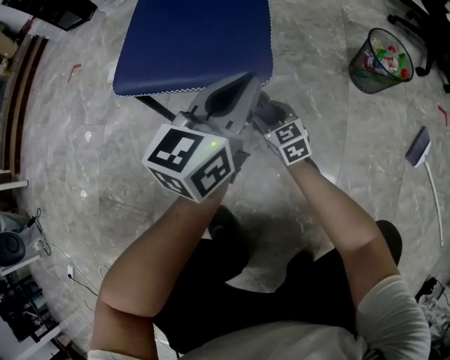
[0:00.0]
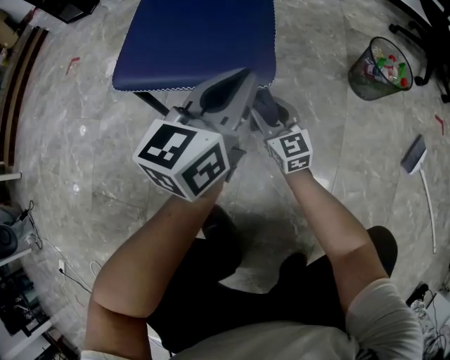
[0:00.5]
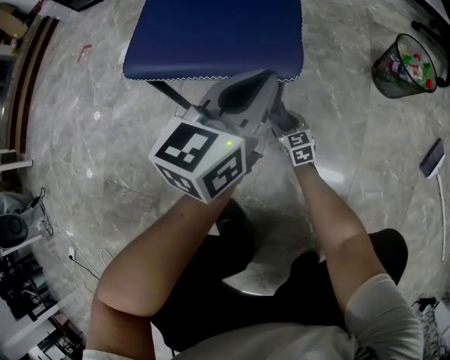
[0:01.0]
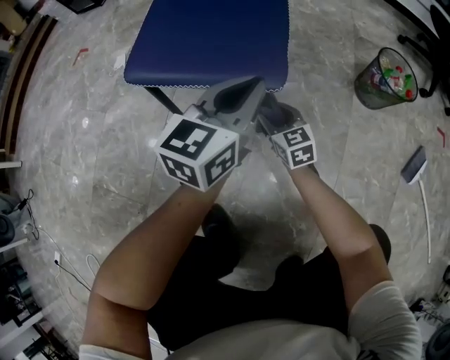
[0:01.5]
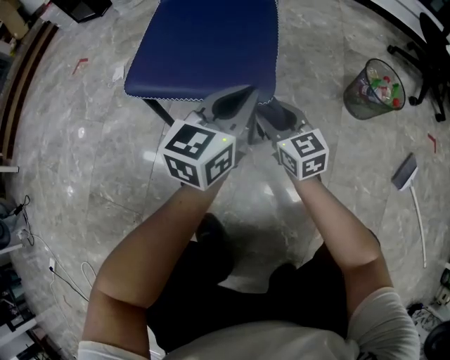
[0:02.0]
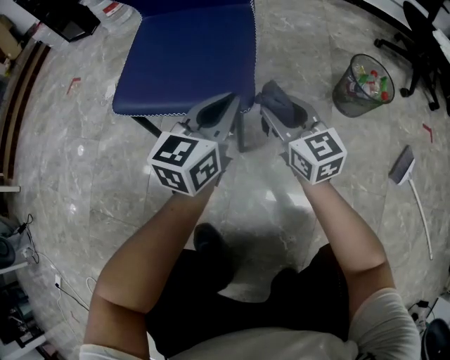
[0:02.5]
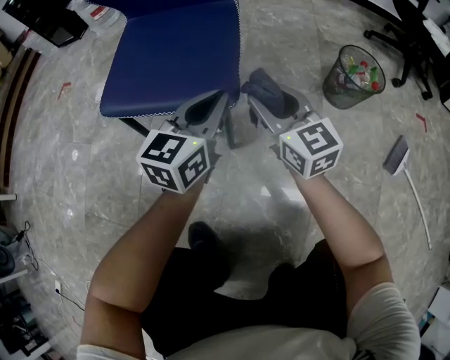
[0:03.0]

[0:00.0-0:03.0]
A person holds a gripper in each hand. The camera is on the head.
0:00.0 to 0:01.5: The right gripper moves up and down over approximately 20 cm, changing direction 2 times.
0:01.5 to 0:03.0: The right gripper goes approximately 20 cm upward.

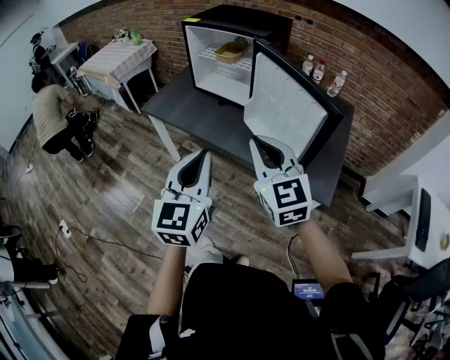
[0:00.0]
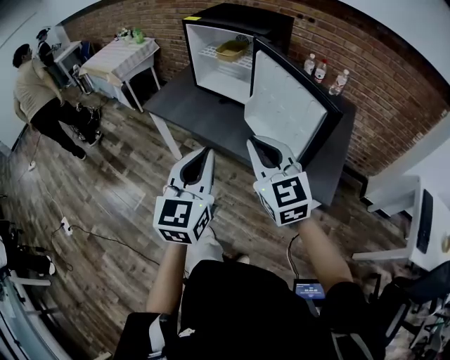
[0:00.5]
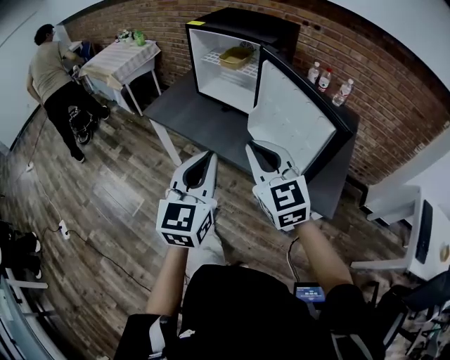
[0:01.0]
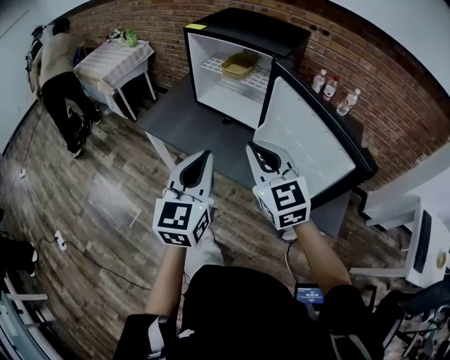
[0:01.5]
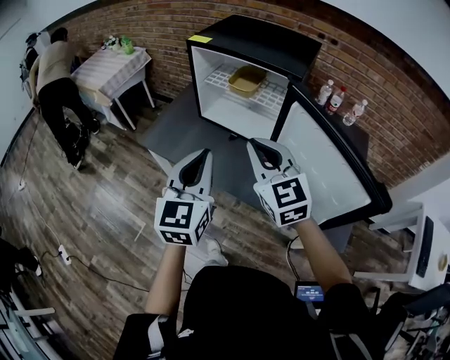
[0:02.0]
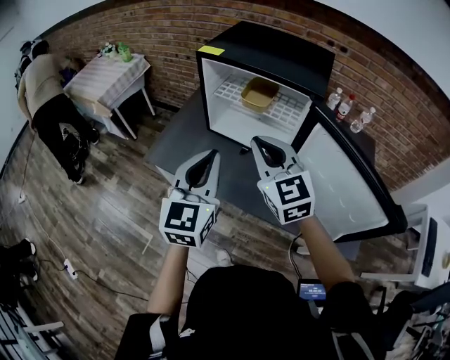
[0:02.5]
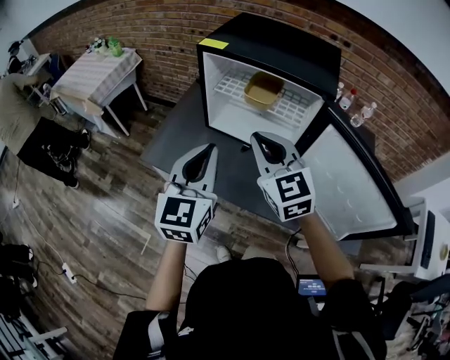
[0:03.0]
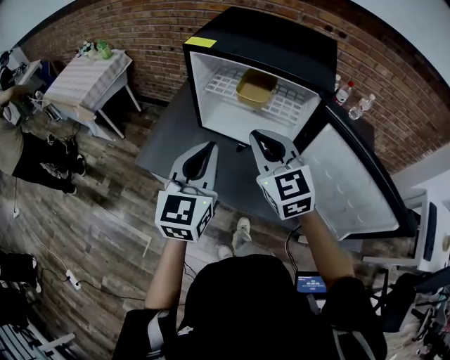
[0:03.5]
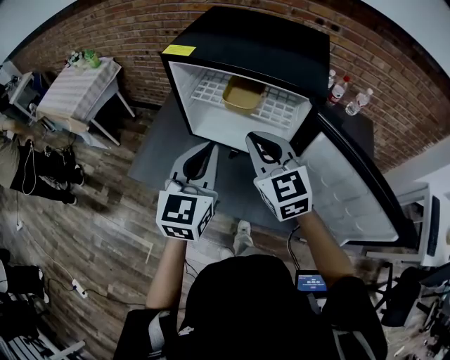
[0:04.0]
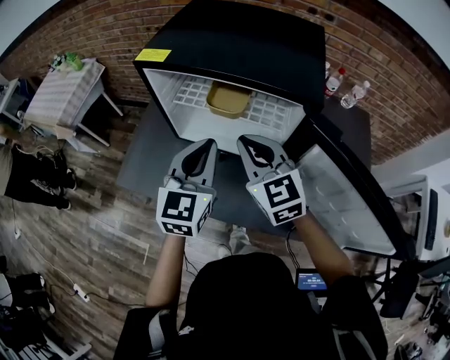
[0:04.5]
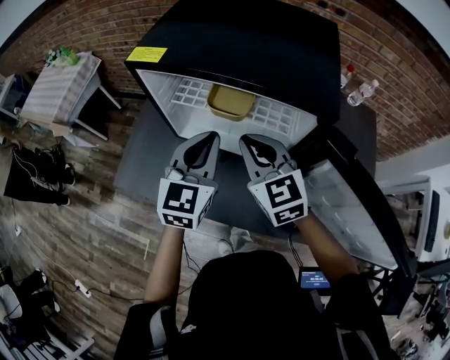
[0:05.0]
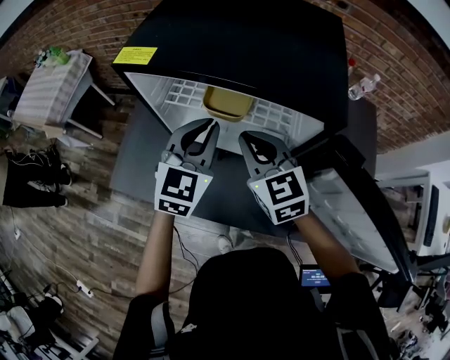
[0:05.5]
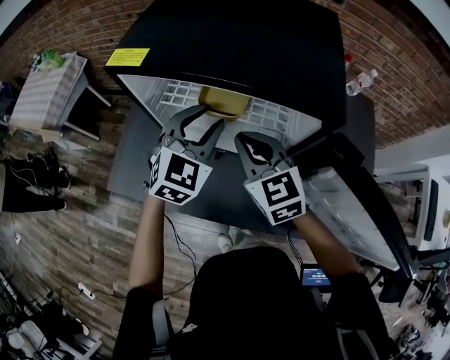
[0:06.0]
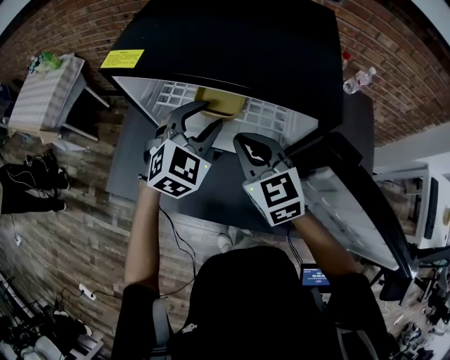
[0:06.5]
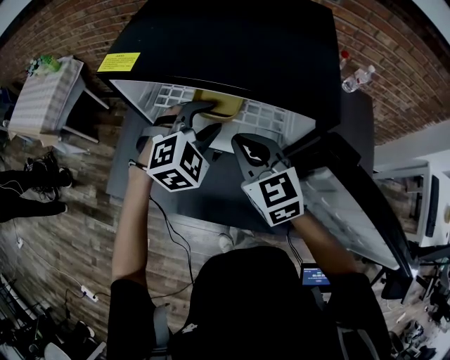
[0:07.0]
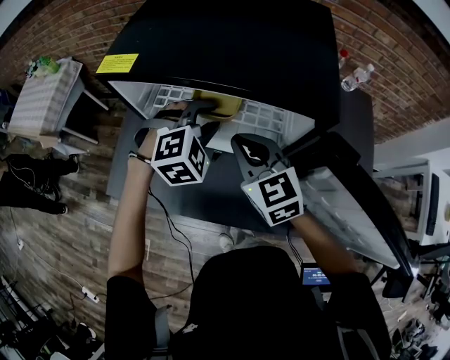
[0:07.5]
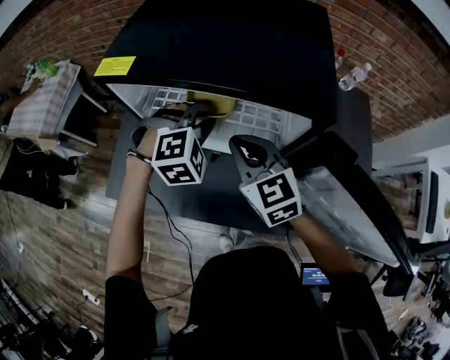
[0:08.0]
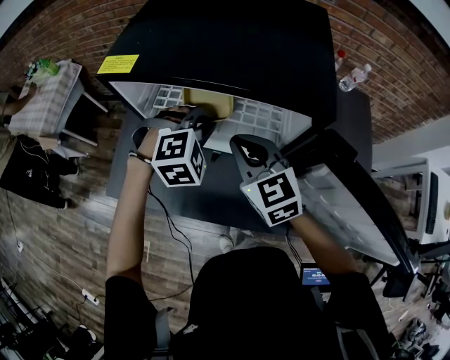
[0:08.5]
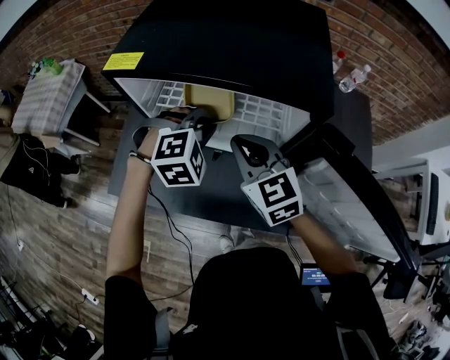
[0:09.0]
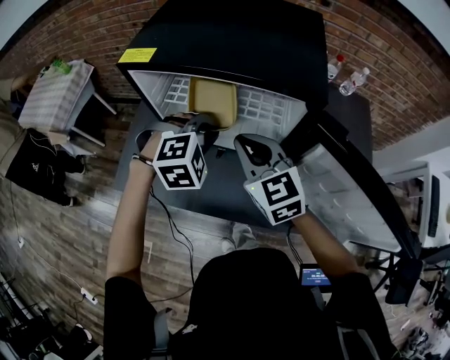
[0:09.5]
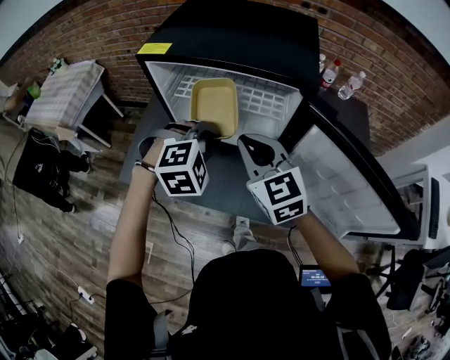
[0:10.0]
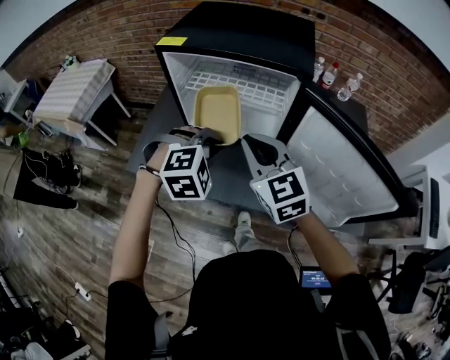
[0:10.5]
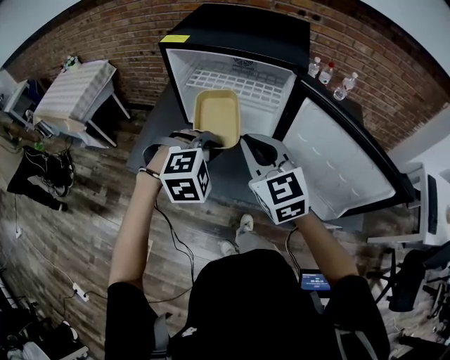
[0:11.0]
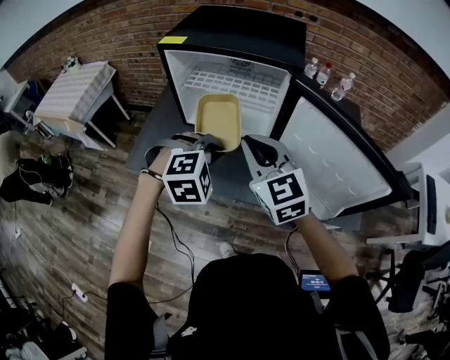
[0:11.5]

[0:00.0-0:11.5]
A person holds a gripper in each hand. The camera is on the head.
0:00.0 to 0:02.0: The two grippers go some 25 cm forward.
0:02.0 to 0:04.0: Both grippers move forward, some 20 cm.
0:04.0 to 0:06.0: The right gripper travels forward and downward by approximately 10 cm; the left gripper travels forward and downward by roughly 20 cm, rotates some 30 degrees, and opens.
0:06.0 to 0:07.5: The left gripper shifts by approximately 5 cm, and swivels approximately 40 degrees.
0:07.5 to 0:09.5: The right gripper moves about 5 cm. The left gripper moves backward, some 5 cm, and closes its fingers.
0:09.5 to 0:11.5: The grippers both shift backward by approximately 20 cm.

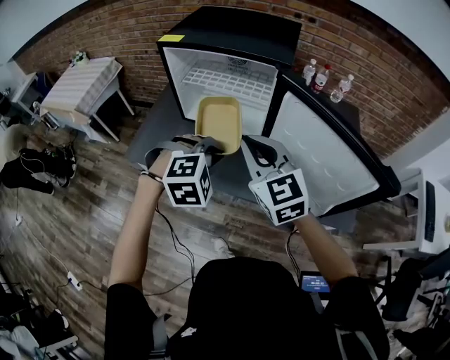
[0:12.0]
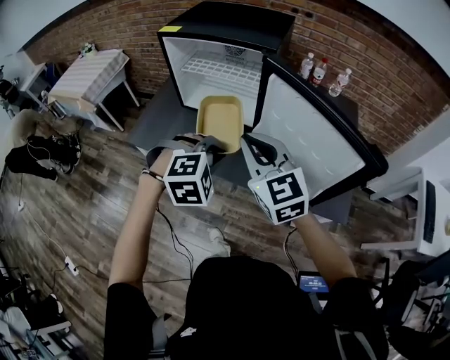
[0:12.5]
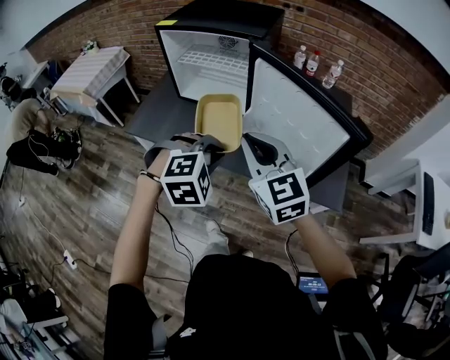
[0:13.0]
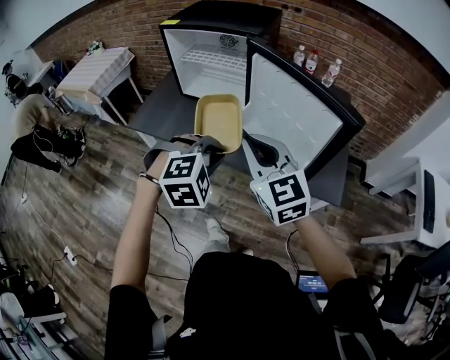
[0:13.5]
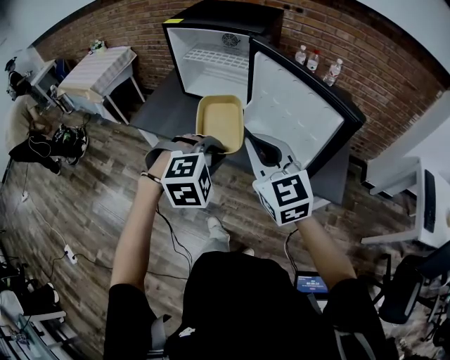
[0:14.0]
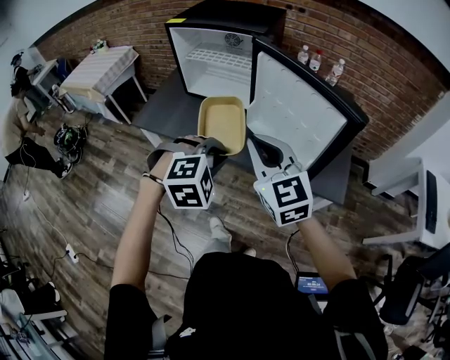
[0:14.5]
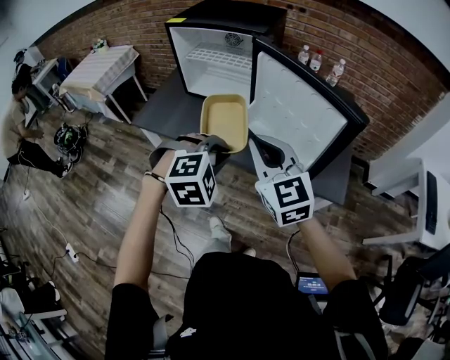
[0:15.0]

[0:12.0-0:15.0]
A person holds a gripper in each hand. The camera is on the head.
0:12.0 to 0:13.5: The two grippers go approximately 20 cm backward and to the right.
0:13.5 to 0:15.0: The grippers stay close to where they were, moving slightly.

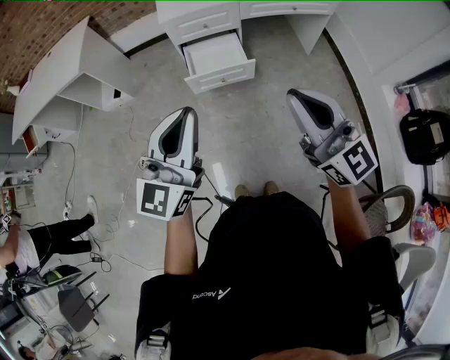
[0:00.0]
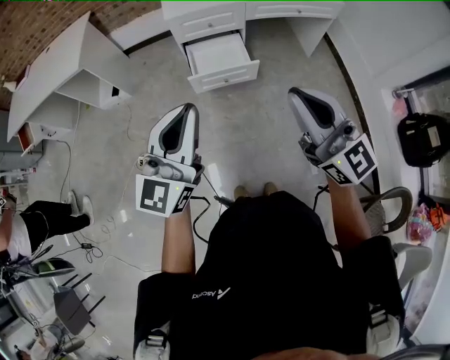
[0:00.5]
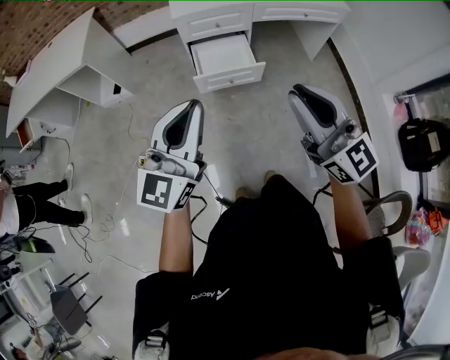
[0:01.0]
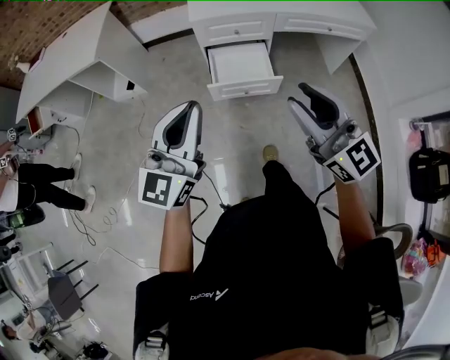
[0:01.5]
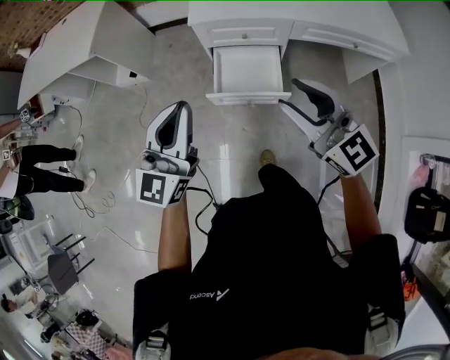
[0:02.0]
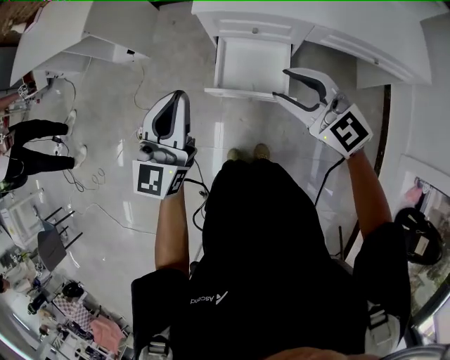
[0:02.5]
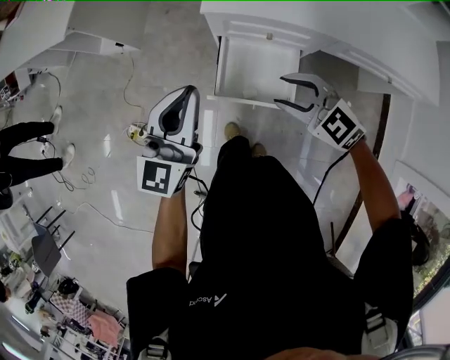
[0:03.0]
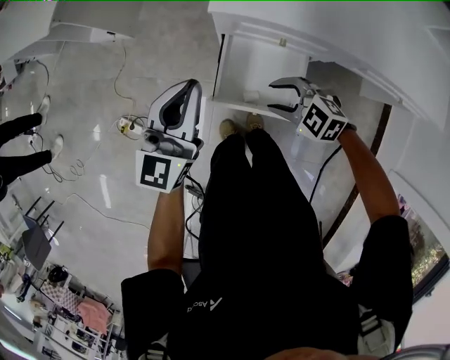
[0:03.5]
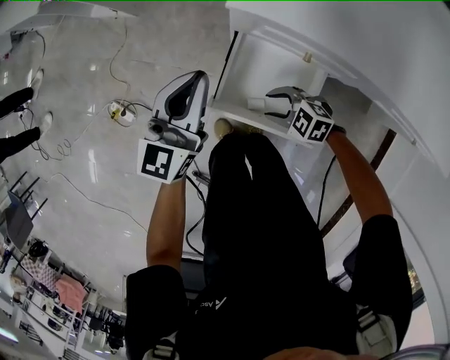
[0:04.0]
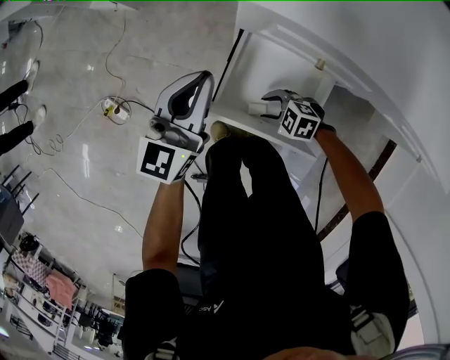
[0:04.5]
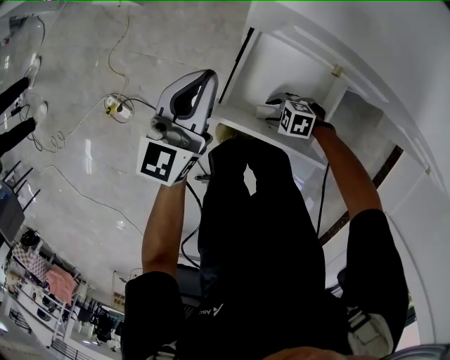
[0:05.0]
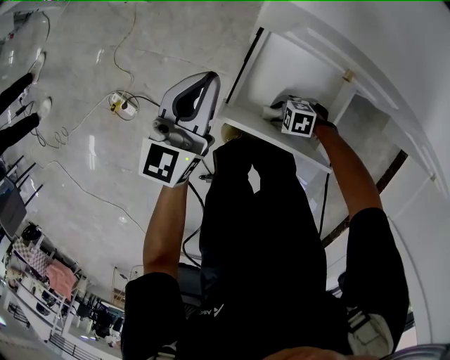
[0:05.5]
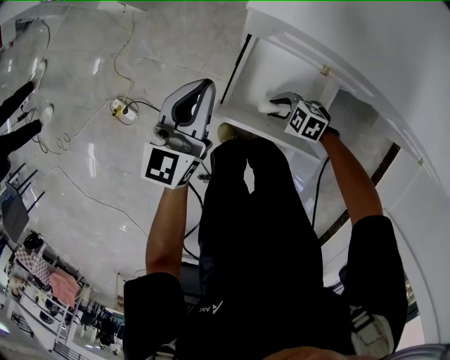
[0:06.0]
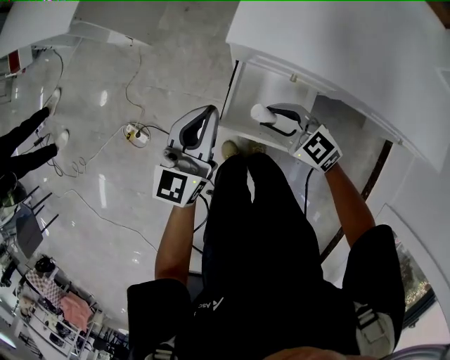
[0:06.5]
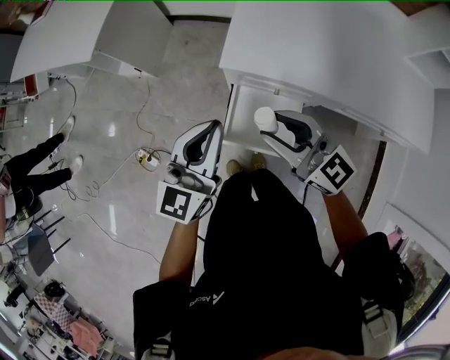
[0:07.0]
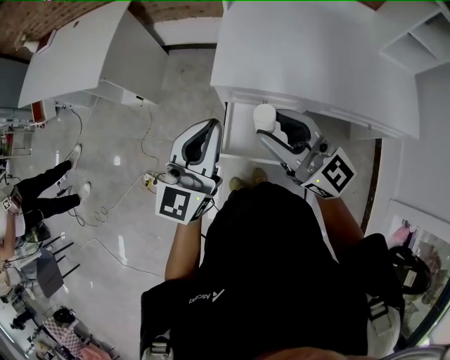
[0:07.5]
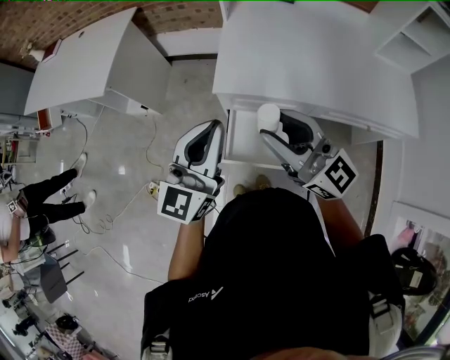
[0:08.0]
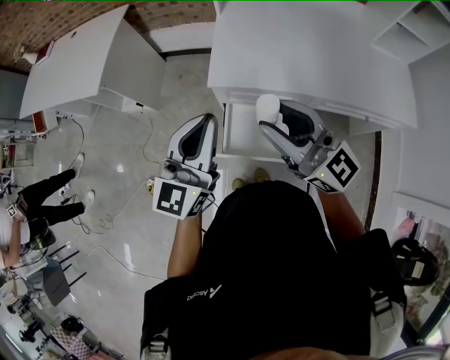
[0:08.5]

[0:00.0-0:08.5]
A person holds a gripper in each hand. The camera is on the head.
0:00.0 to 0:02.0: Both grippers move forward, approximately 35 cm. The right gripper rotates about 20 degrees, and opens its fingers.
0:02.0 to 0:04.0: The left gripper moves roughly 50 cm, and swivels about 20 degrees; the right gripper goes some 50 cm downward, and angles its fingers downward, by some 50 degrees.
0:04.0 to 0:06.5: The right gripper heads upward, covering some 20 cm, and swivels approximately 30 degrees, while the left gripper heads upward, covering some 10 cm.
0:06.5 to 0:08.5: The grippers both shift upward by roughly 35 cm. The right gripper tilts its fingers some 40 degrees upward.
